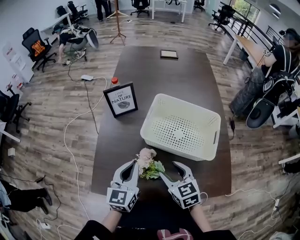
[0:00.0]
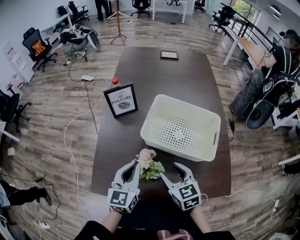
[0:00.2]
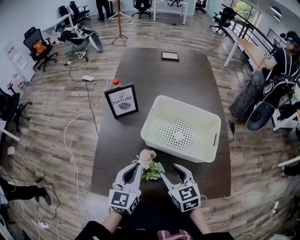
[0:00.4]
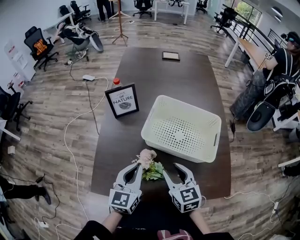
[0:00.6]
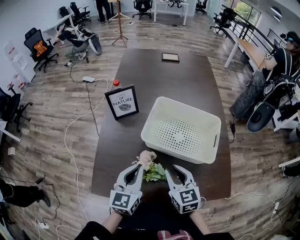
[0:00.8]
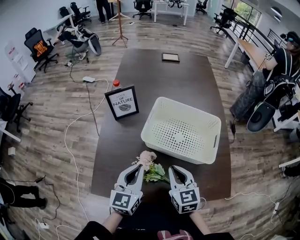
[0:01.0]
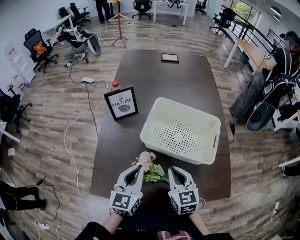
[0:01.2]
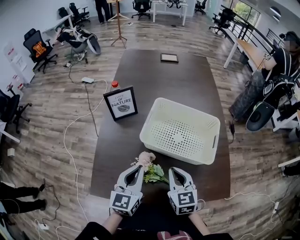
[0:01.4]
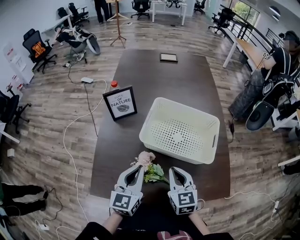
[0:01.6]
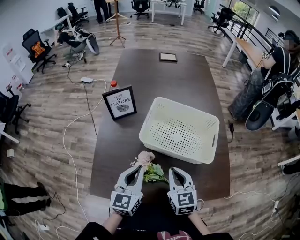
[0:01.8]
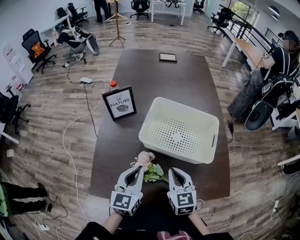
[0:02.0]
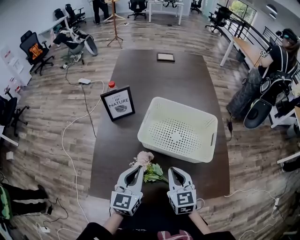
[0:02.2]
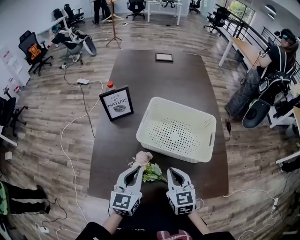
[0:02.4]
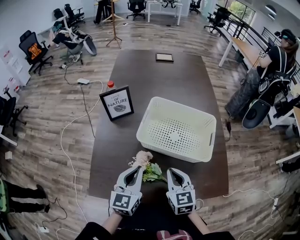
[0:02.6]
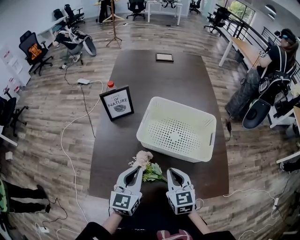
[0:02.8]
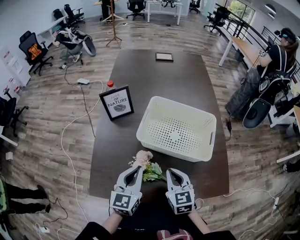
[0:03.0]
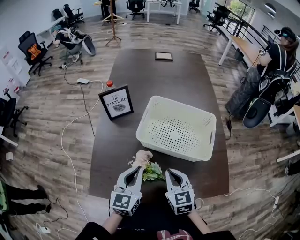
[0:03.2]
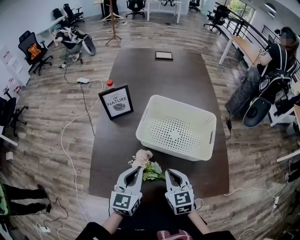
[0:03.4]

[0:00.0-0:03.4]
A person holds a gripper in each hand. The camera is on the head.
0:00.0 to 0:01.6: The right gripper closes its fingers.
0:01.6 to 0:03.4: There are only small adjustments of the grippers.

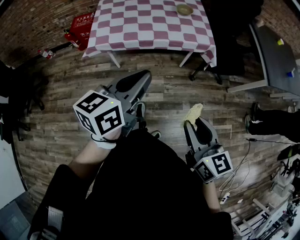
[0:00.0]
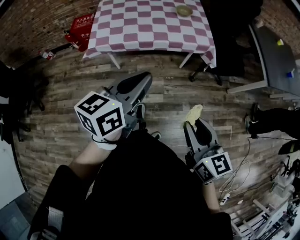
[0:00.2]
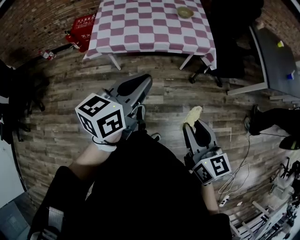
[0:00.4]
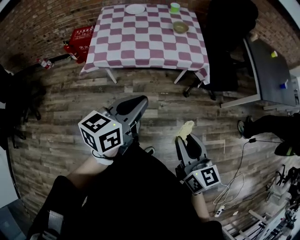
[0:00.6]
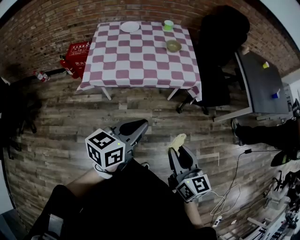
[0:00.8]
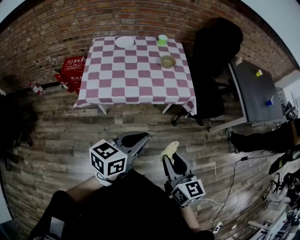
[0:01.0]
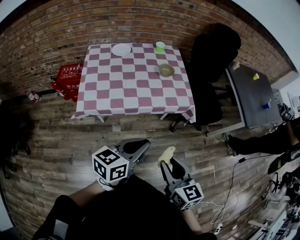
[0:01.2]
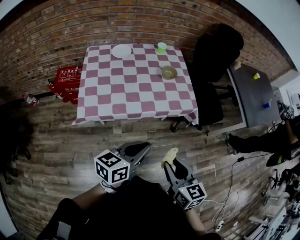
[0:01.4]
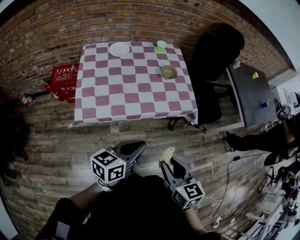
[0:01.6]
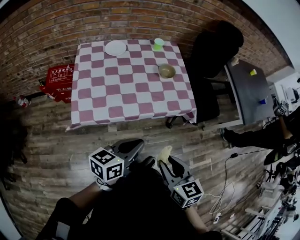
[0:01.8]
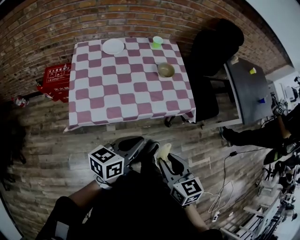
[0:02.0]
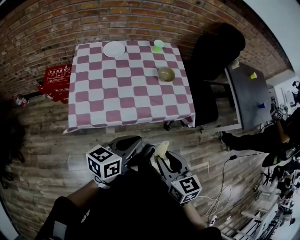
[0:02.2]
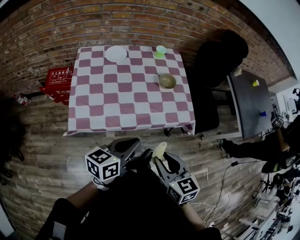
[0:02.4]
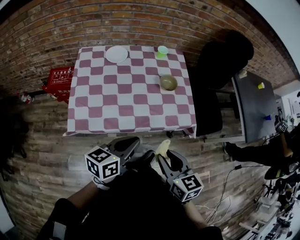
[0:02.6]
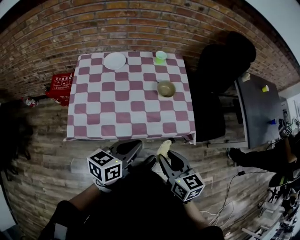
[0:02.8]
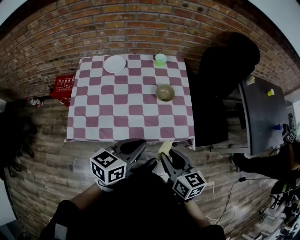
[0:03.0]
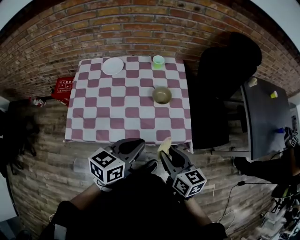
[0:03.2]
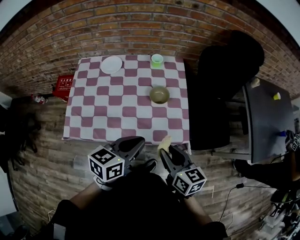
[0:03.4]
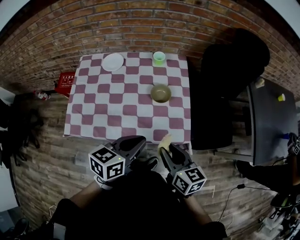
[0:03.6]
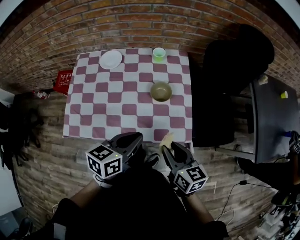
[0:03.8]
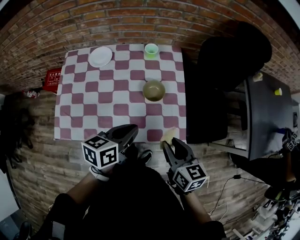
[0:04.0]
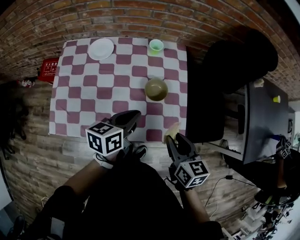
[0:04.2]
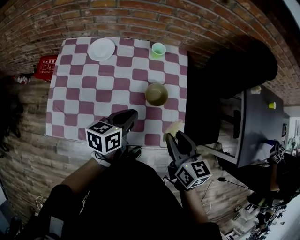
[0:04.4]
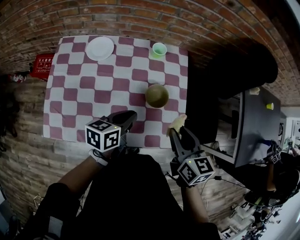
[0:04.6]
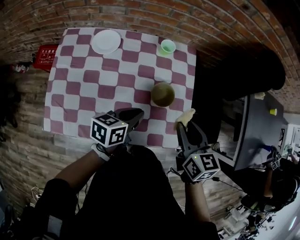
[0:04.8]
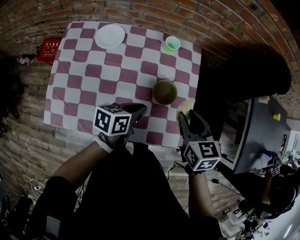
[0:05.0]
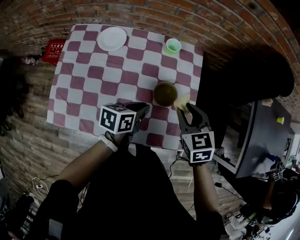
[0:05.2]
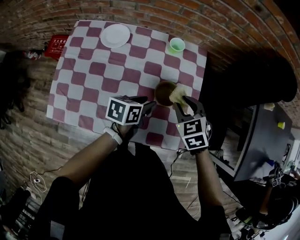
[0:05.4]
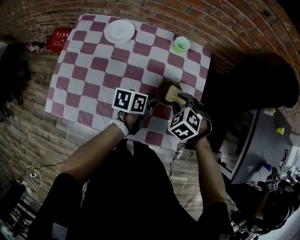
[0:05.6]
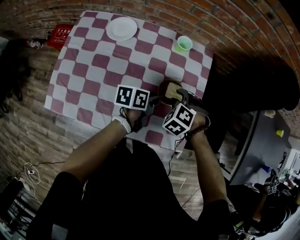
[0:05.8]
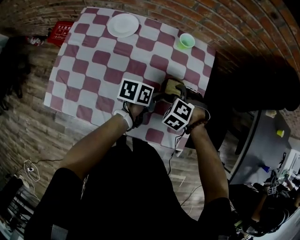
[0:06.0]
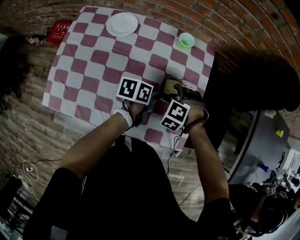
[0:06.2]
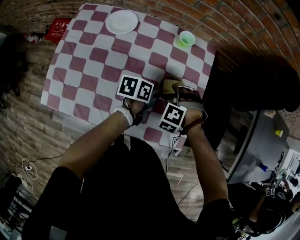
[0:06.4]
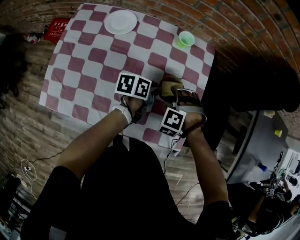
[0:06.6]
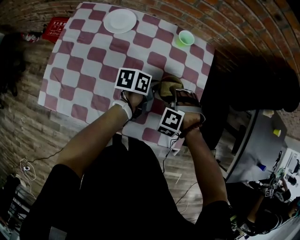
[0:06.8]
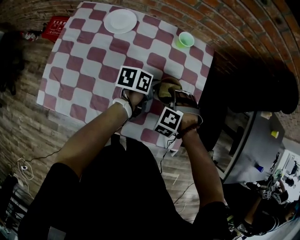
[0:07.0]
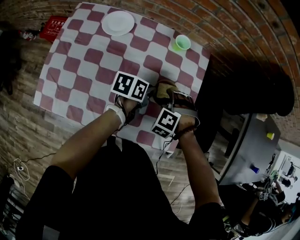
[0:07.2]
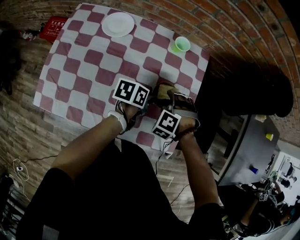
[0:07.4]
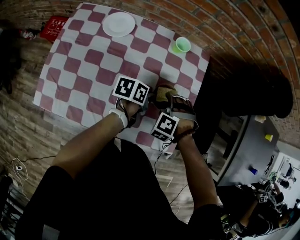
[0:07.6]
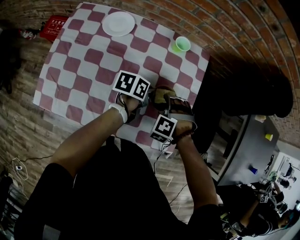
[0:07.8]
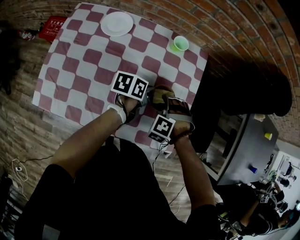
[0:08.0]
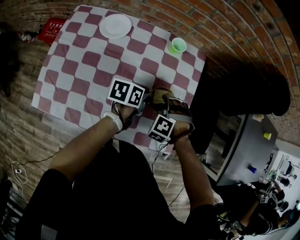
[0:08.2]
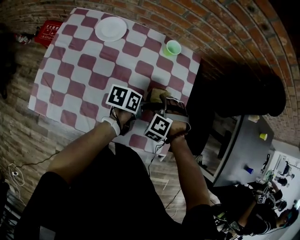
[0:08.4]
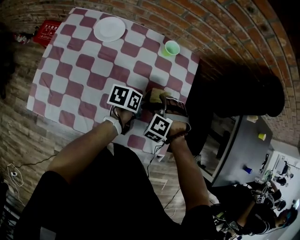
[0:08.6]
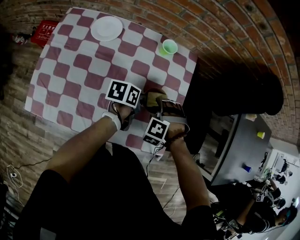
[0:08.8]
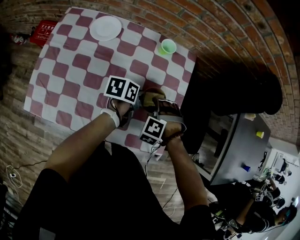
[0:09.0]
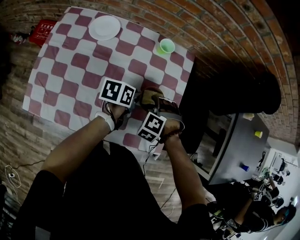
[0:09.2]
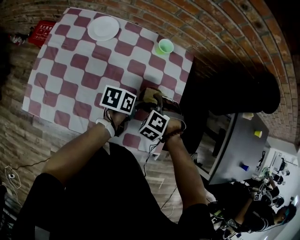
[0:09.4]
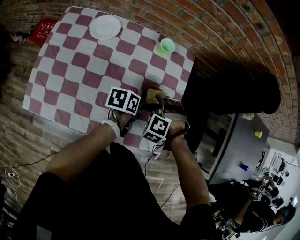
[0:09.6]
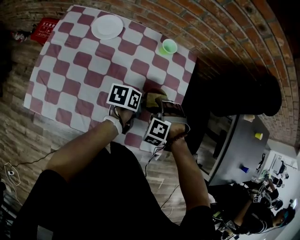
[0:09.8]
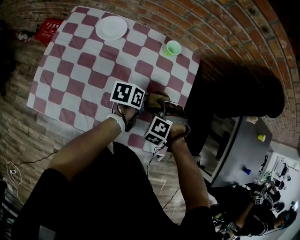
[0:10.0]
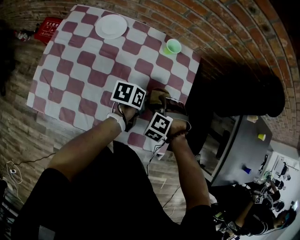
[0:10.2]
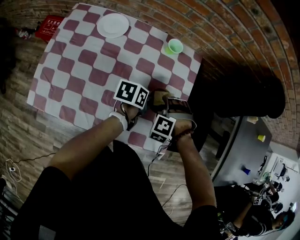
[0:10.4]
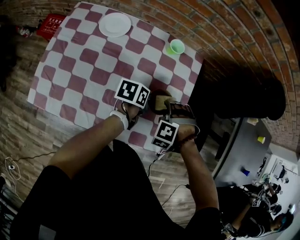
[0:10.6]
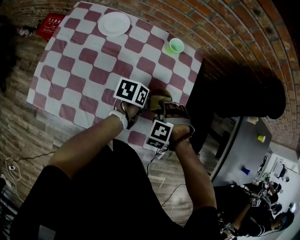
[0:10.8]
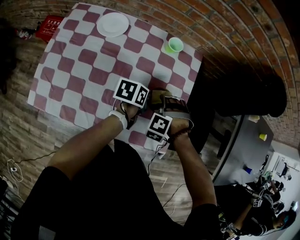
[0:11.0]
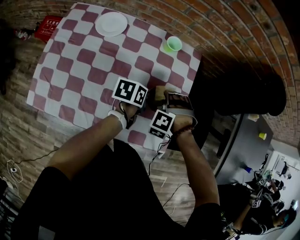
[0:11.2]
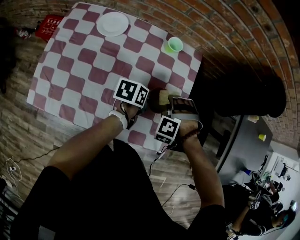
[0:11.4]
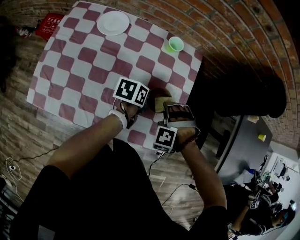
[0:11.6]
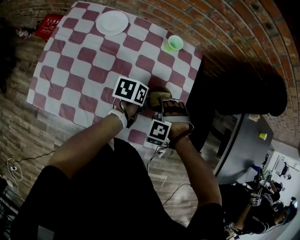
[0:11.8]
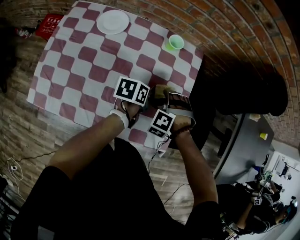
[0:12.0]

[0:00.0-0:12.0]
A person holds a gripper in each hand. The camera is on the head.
0:00.0 to 0:01.6: Both grippers travel together forward and to the left, some 20 cm.
0:01.6 to 0:03.0: The grippers both shift forward by approximately 20 cm.
0:03.0 to 0:04.4: The right gripper goes about 20 cm forward; the left gripper shifts about 25 cm forward and downward.
0:04.4 to 0:06.0: Both grippers travel together downward and forward, about 20 cm. The right gripper rotates around the line of its fingers by some 80 degrees, counterclockwise from behind. Meanwhile the left gripper turns by roughly 20 degrees, and opens its fingers.
0:06.0 to 0:07.6: The left gripper closes up.
0:07.6 to 0:09.0: The left gripper opens, then closes again.
0:09.0 to 0:10.4: The left gripper opens, then closes once more.
0:10.4 to 0:12.0: The grippers move only a little.

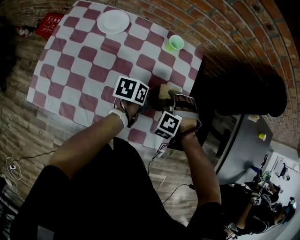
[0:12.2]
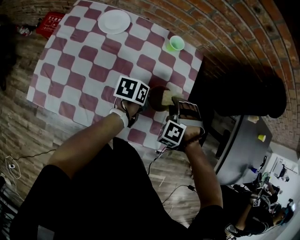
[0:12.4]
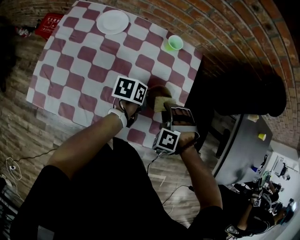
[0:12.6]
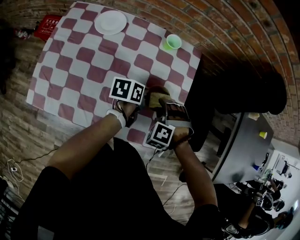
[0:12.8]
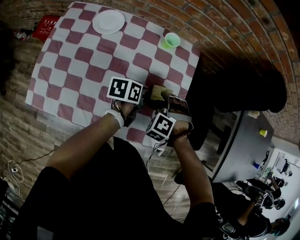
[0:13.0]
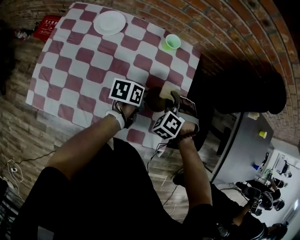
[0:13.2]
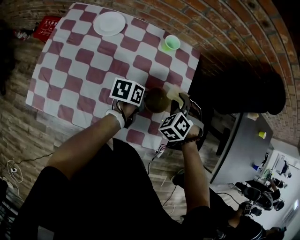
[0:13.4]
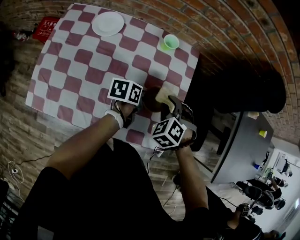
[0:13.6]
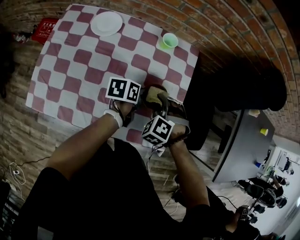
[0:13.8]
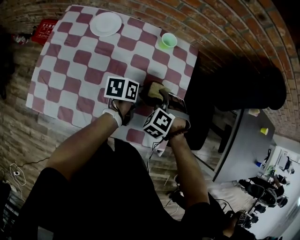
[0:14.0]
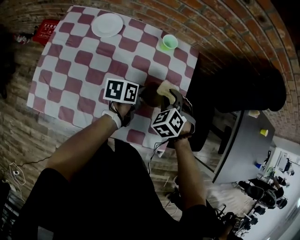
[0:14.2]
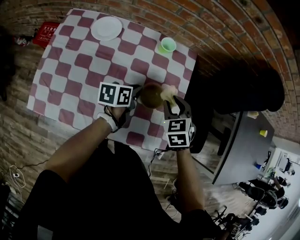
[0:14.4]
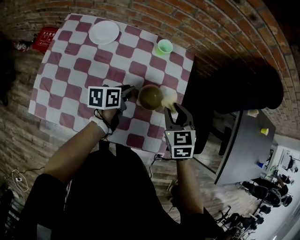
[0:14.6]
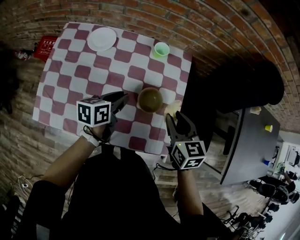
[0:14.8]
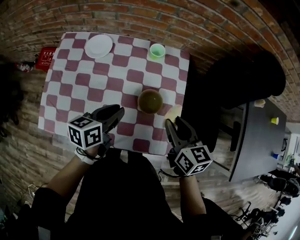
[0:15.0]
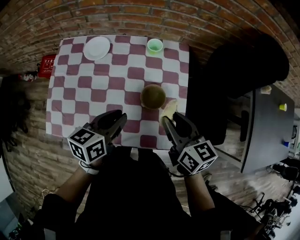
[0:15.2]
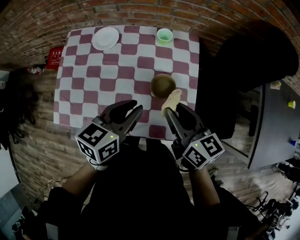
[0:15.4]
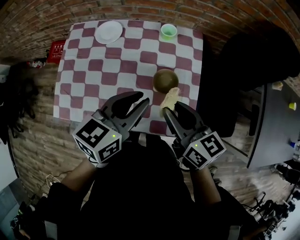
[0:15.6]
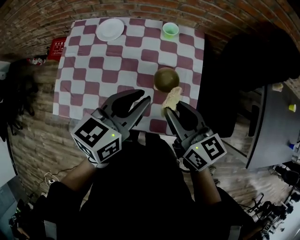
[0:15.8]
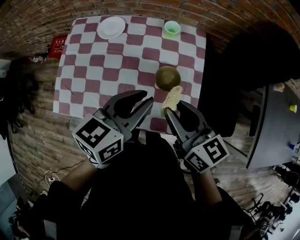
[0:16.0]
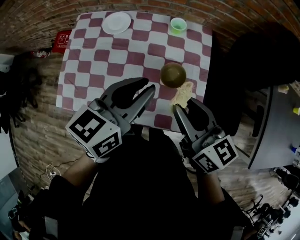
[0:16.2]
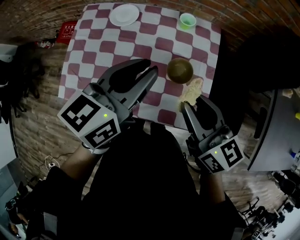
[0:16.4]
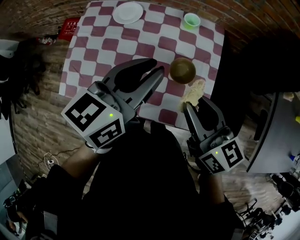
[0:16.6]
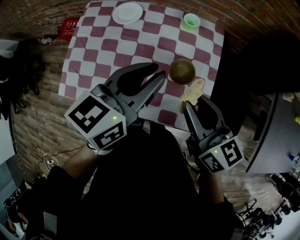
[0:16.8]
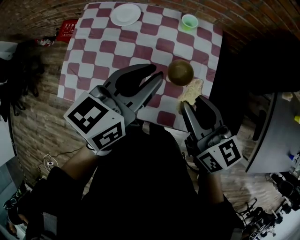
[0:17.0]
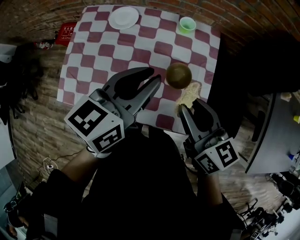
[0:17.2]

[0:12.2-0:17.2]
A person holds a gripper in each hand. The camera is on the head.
0:12.2 to 0:13.8: The right gripper swings forward and backward, roughly 10 cm each way, with 2 reversals.
0:13.8 to 0:15.6: The grippers both shift upward by roughly 20 cm. The right gripper tilts its fingers about 40 degrees upward. The left gripper turns by about 40 degrees.

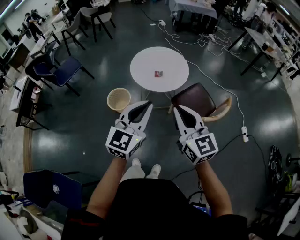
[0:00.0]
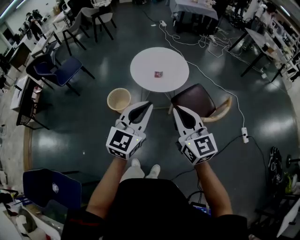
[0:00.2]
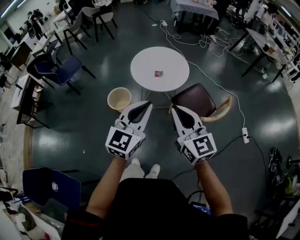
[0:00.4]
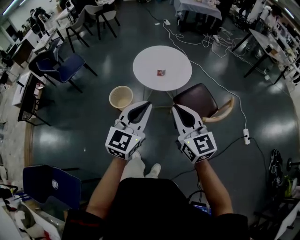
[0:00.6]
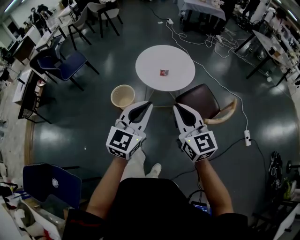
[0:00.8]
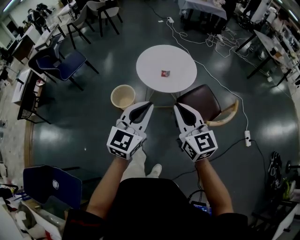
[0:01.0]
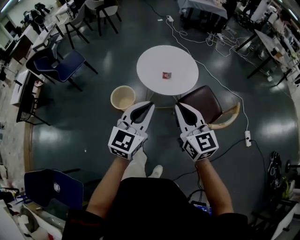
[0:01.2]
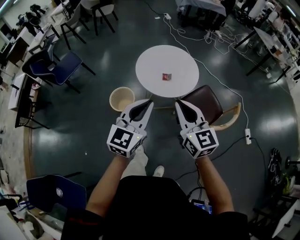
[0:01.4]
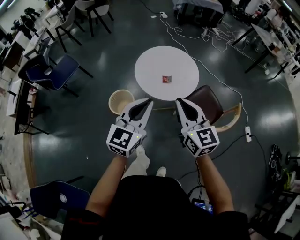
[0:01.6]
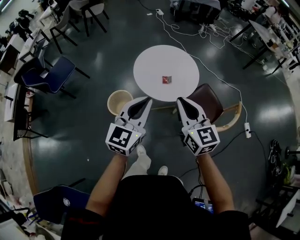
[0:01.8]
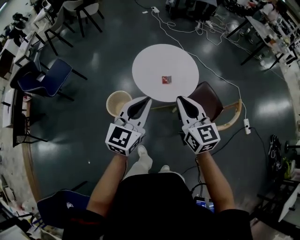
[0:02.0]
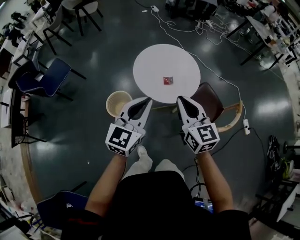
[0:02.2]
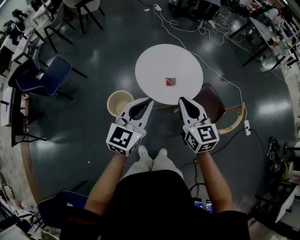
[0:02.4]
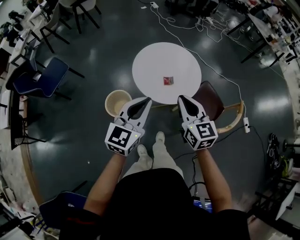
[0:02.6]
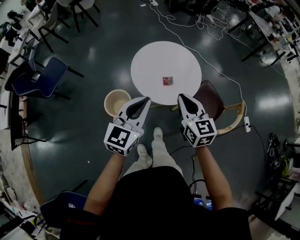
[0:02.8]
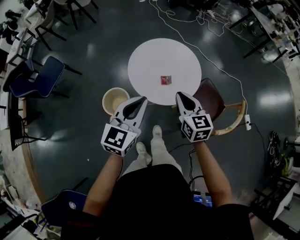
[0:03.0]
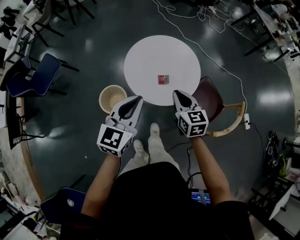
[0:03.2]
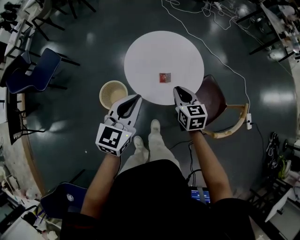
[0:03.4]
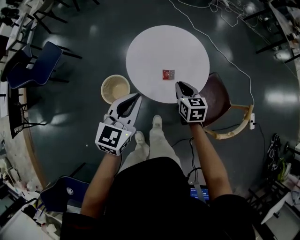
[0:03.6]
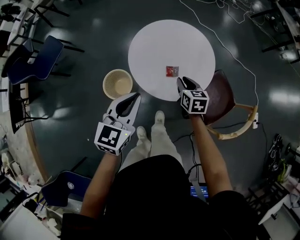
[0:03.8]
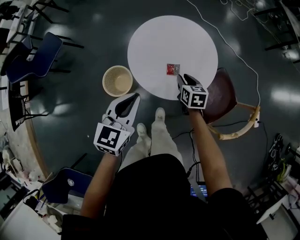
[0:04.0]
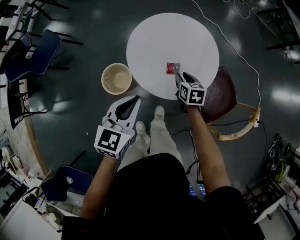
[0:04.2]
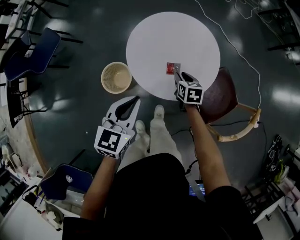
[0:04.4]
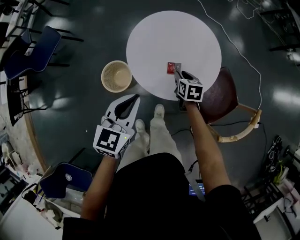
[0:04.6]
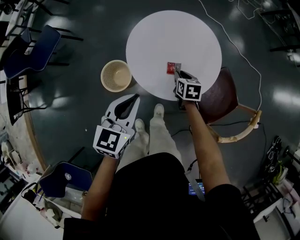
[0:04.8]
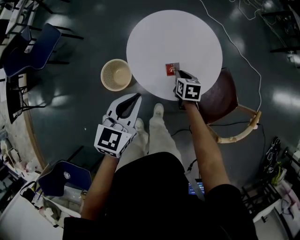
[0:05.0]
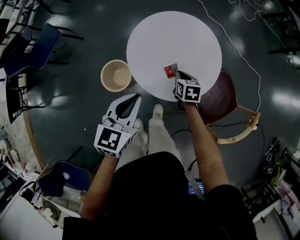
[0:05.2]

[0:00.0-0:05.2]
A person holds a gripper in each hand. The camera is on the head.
0:00.0 to 0:01.8: The two grippers go approximately 20 cm forward and to the left.
0:01.8 to 0:03.4: The right gripper travels forward and downward by about 30 cm, and swivels about 20 degrees; the left gripper shifts some 20 cm forward and downward.
0:03.4 to 0:05.2: The right gripper shifts about 20 cm downward and forward, turns by roughly 20 degrees, and opens and closes again; the left gripper travels downward by roughly 10 cm.
